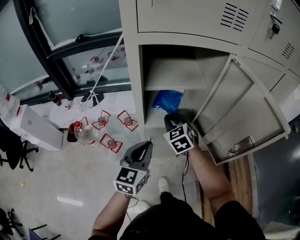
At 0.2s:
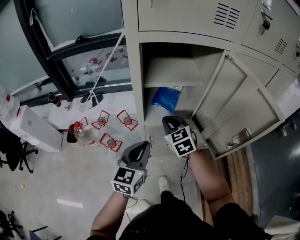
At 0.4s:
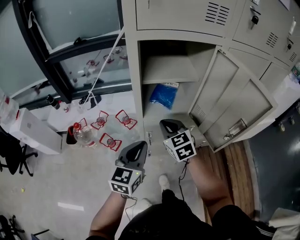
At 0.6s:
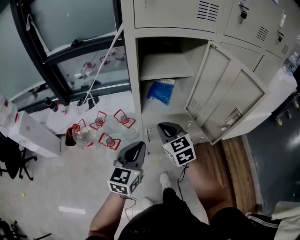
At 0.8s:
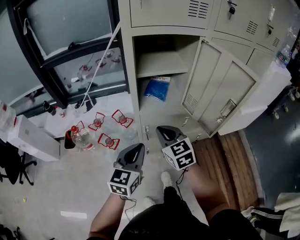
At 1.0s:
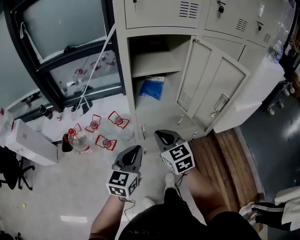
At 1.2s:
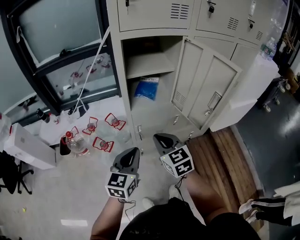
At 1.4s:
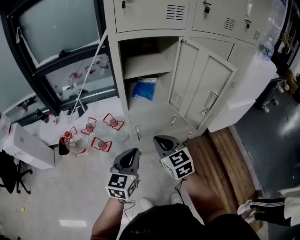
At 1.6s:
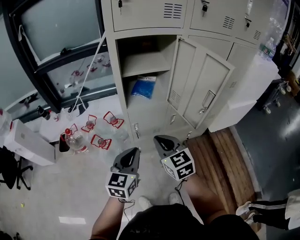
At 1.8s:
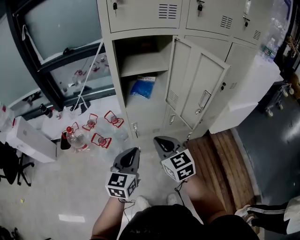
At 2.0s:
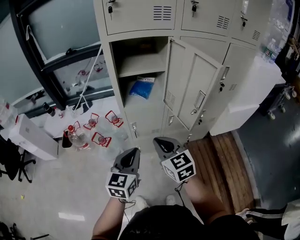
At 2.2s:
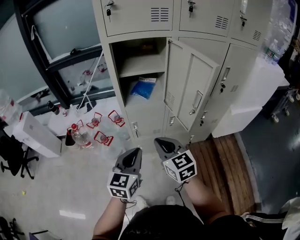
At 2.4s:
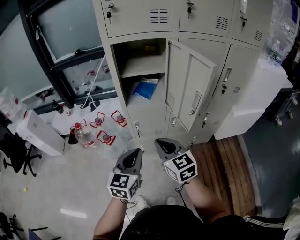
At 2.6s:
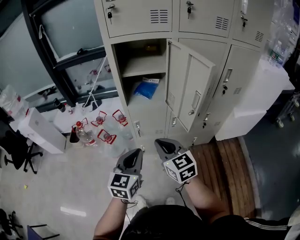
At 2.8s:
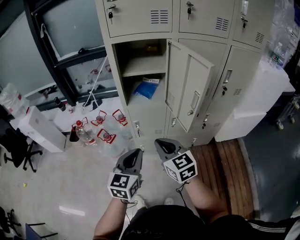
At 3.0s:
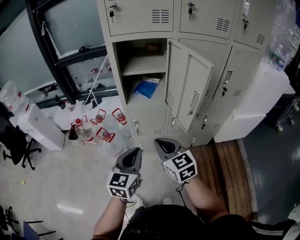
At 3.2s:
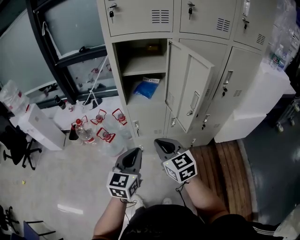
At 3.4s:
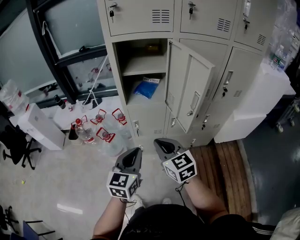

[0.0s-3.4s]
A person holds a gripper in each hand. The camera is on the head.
0.0s to 1.6s: The right gripper is displaced backward by roughly 25 cm, and swivels roughly 20 degrees; the left gripper goes approximately 15 cm backward.
1.6s to 3.4s: Both grippers move to the right and backward, about 10 cm.

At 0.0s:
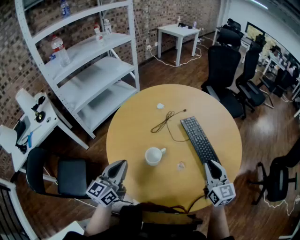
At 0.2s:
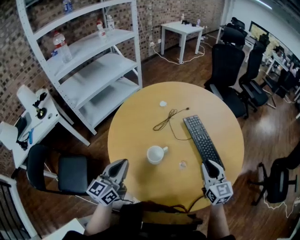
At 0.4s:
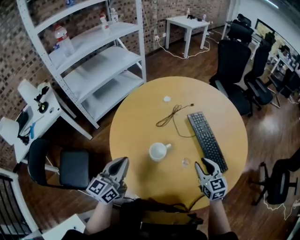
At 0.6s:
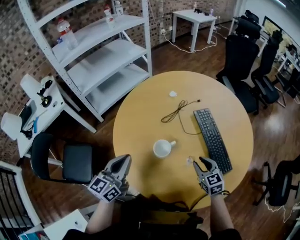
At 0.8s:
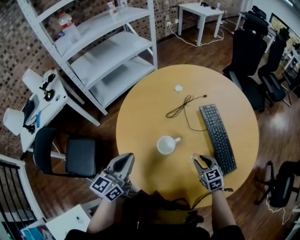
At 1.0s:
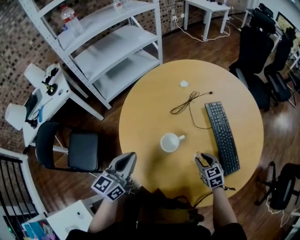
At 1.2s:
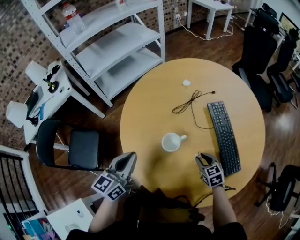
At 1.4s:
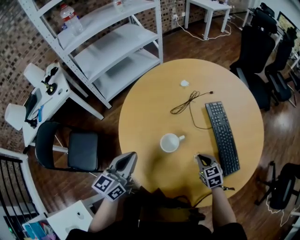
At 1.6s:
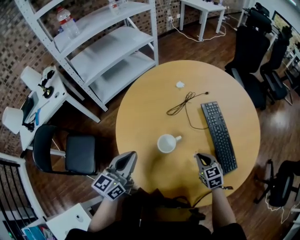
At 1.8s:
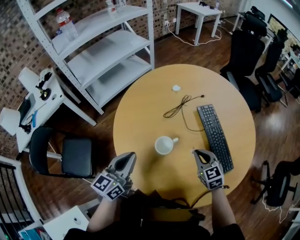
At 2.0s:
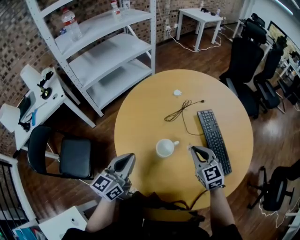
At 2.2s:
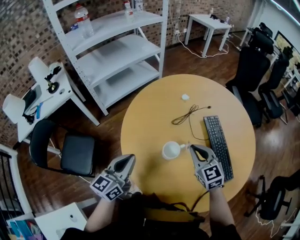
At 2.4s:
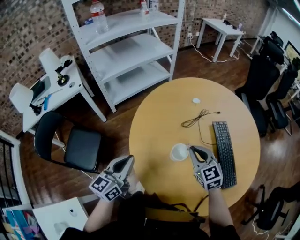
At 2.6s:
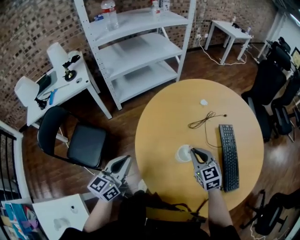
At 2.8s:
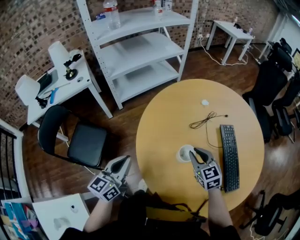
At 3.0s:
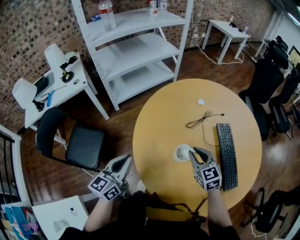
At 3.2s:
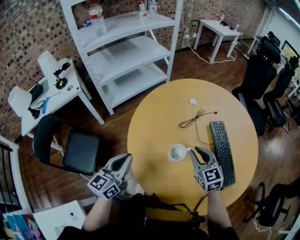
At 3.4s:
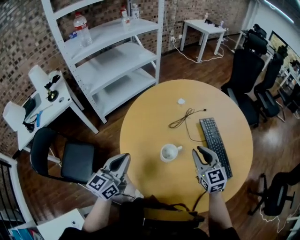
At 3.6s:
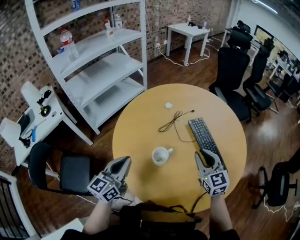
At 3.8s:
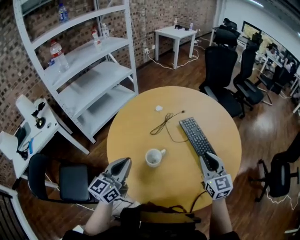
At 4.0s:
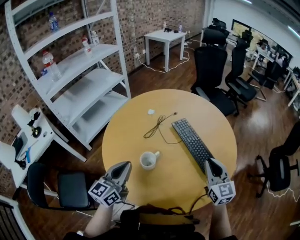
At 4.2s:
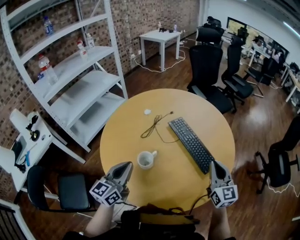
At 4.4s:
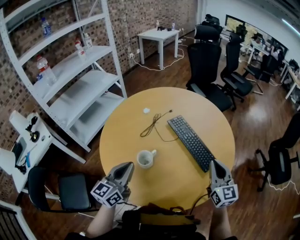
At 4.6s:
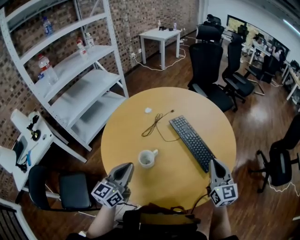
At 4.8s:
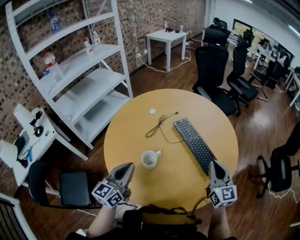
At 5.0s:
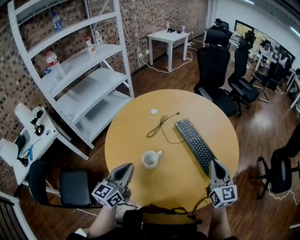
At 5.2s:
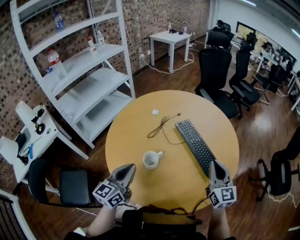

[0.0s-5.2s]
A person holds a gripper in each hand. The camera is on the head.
0.0s to 1.8s: The right gripper moves downward, to the left and forward, some 15 cm, and turns by roughly 30 degrees.
1.8s to 3.4s: The right gripper goes about 10 cm upward, and travels to the left and back again, some 15 cm each way. Meanwhile the left gripper heads to the left, covering approximately 5 cm.
3.4s to 5.2s: The left gripper is displaced to the right by roughly 10 cm. The right gripper shifts roughly 20 cm to the right, and swivels approximately 30 degrees.

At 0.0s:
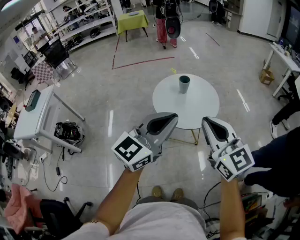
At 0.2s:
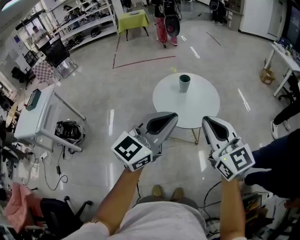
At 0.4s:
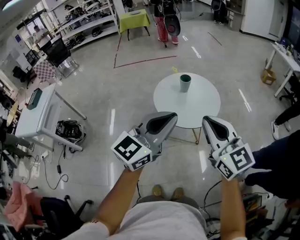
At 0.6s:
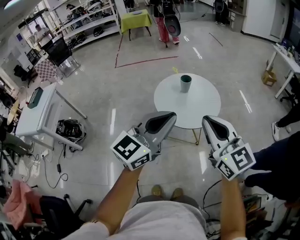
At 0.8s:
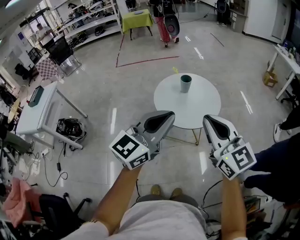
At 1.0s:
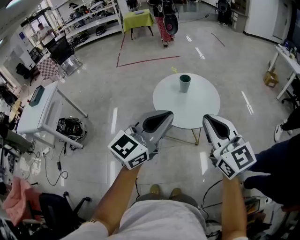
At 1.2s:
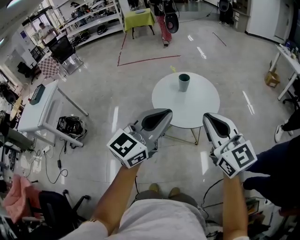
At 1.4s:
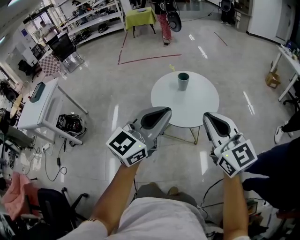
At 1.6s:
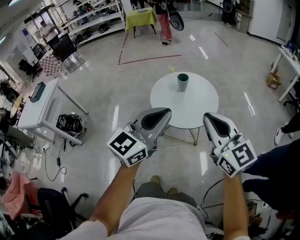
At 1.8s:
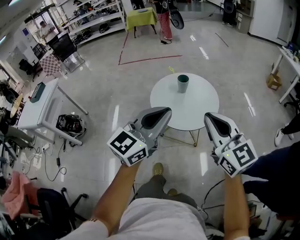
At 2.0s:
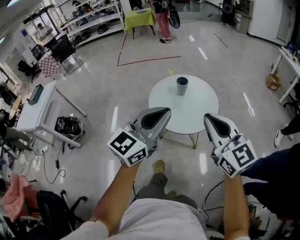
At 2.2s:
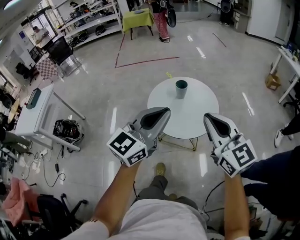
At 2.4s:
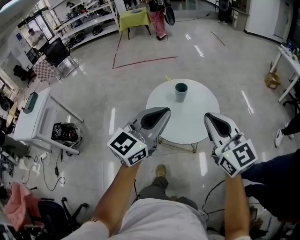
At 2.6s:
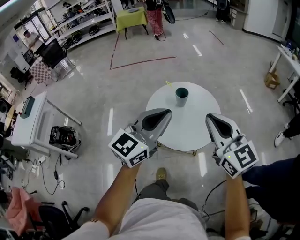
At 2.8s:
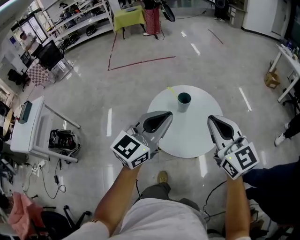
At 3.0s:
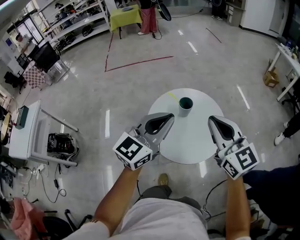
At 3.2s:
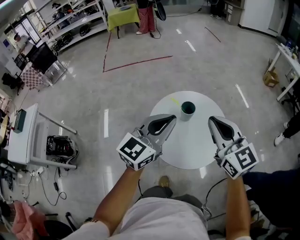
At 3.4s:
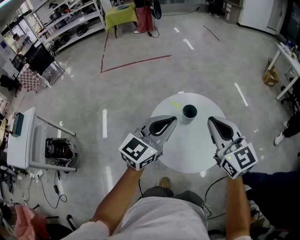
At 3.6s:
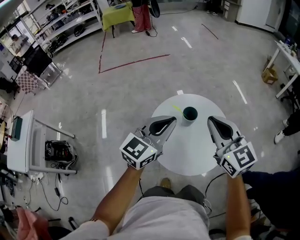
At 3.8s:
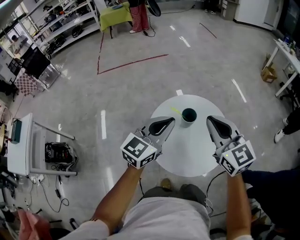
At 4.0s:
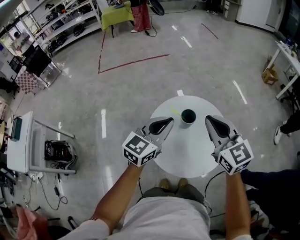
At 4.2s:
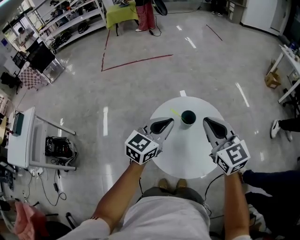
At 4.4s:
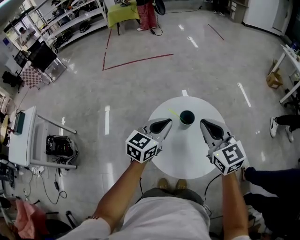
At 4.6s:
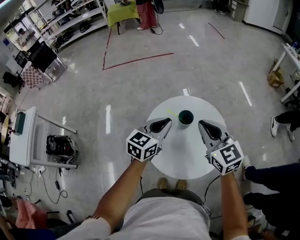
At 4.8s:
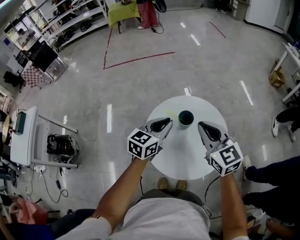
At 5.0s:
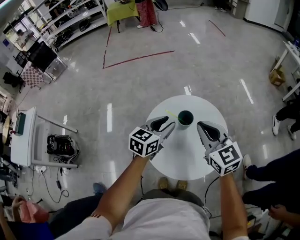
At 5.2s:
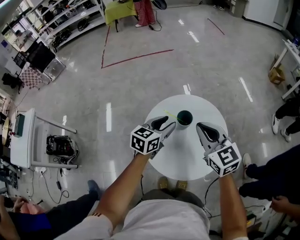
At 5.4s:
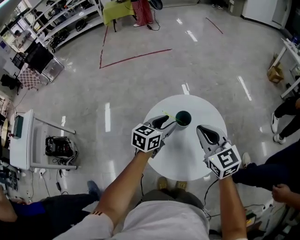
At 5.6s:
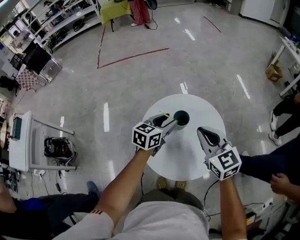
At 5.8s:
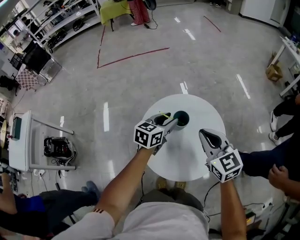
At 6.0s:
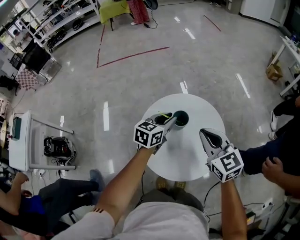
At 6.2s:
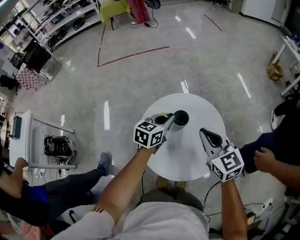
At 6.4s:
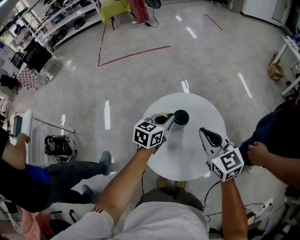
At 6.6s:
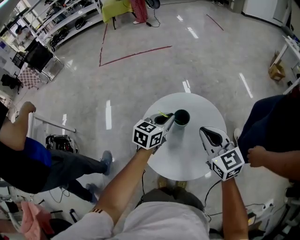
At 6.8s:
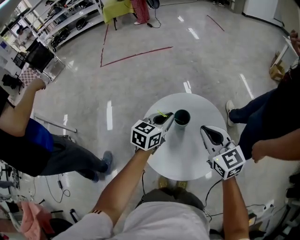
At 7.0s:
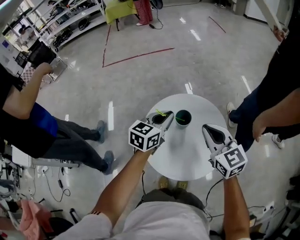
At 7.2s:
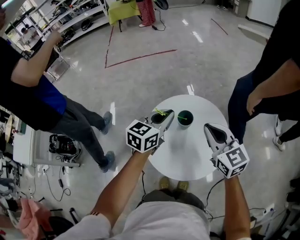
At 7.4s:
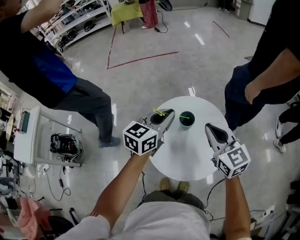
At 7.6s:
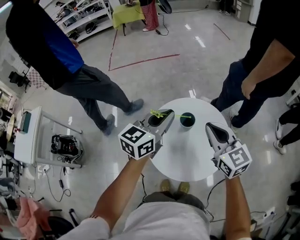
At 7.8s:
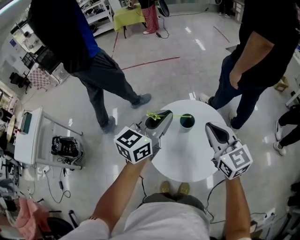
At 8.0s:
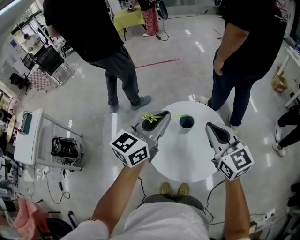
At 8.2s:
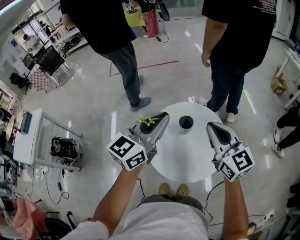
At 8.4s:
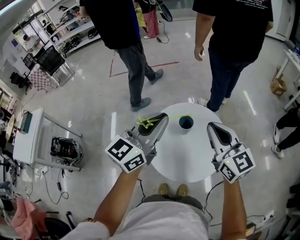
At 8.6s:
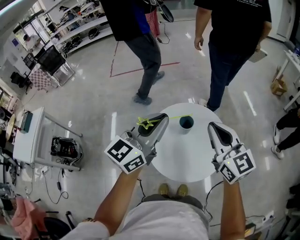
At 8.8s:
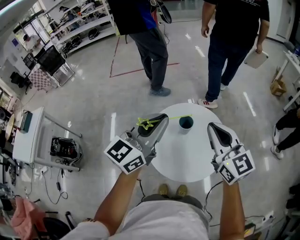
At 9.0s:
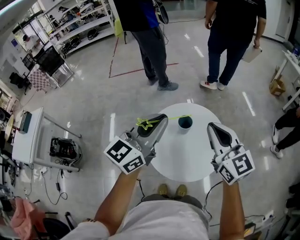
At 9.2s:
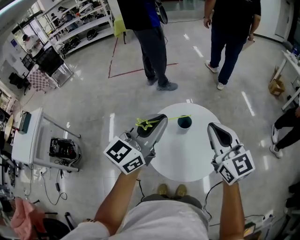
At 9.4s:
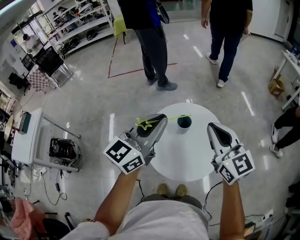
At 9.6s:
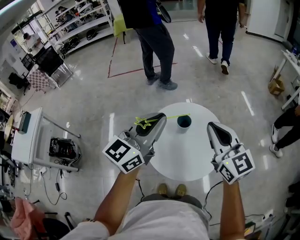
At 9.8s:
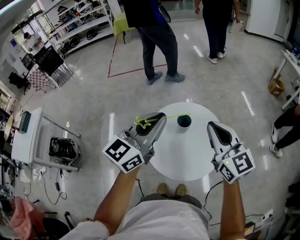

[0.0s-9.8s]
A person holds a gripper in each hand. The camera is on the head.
0.0s to 1.4s: There are only small adjustments of the grippers.
1.4s to 2.8s: The two grippers go some 15 cm forward.
2.8s to 4.2s: Both grippers move forward and downward, some 15 cm.
4.2s to 5.6s: The left gripper is displaced downward and forward by some 10 cm, and opens, while the right gripper is displaced downward by approximately 5 cm.
5.6s to 7.0s: The left gripper shifts approximately 5 cm upward, and closes its fingers.
7.0s to 8.4s: The left gripper moves upward and backward, approximately 20 cm, and rotates approximately 30 degrees. The right gripper shifts about 10 cm upward.
8.4s to 9.8s: There are only small adjustments of the grippers.

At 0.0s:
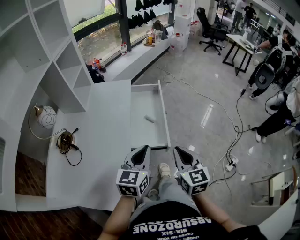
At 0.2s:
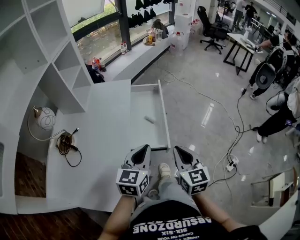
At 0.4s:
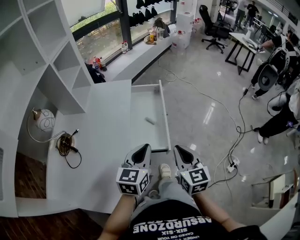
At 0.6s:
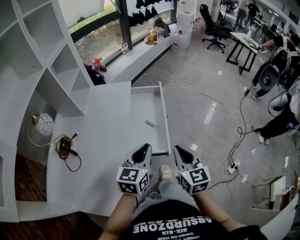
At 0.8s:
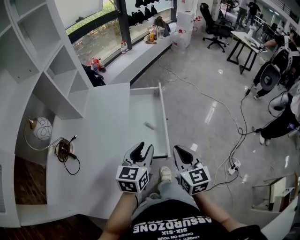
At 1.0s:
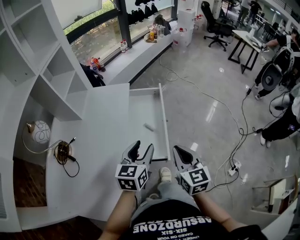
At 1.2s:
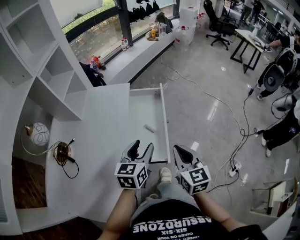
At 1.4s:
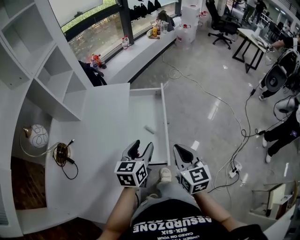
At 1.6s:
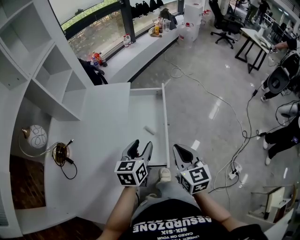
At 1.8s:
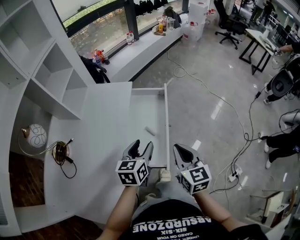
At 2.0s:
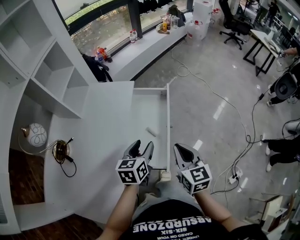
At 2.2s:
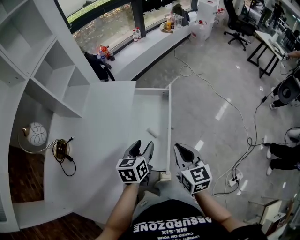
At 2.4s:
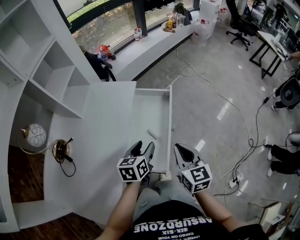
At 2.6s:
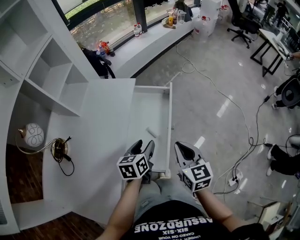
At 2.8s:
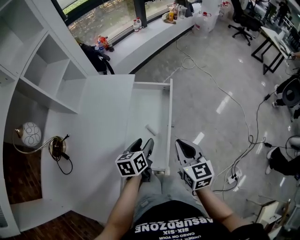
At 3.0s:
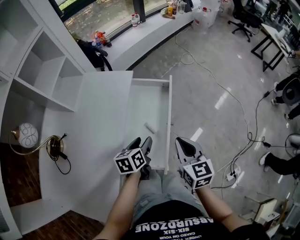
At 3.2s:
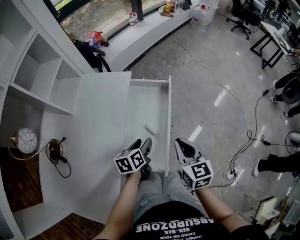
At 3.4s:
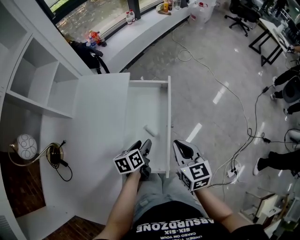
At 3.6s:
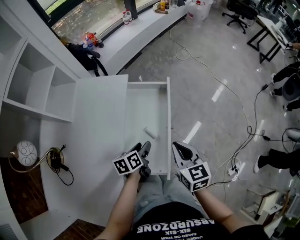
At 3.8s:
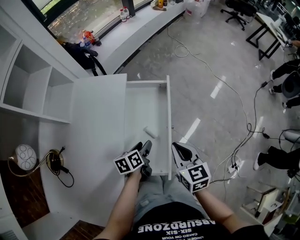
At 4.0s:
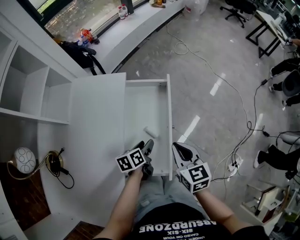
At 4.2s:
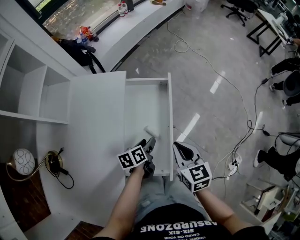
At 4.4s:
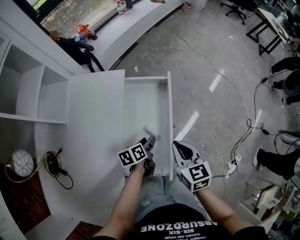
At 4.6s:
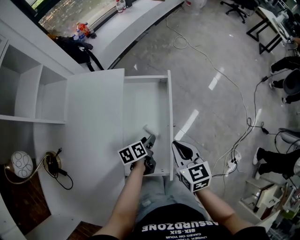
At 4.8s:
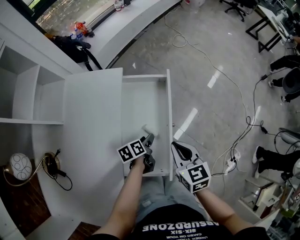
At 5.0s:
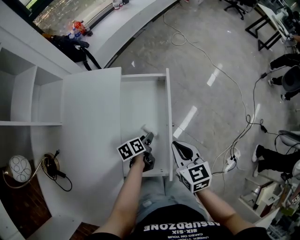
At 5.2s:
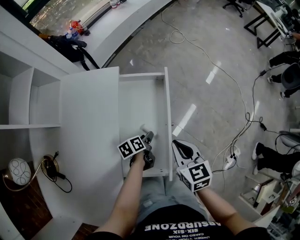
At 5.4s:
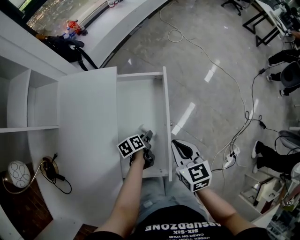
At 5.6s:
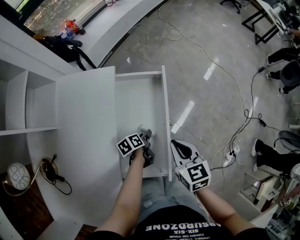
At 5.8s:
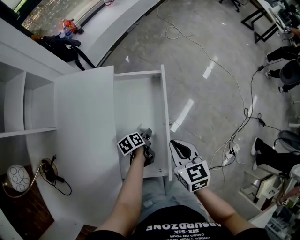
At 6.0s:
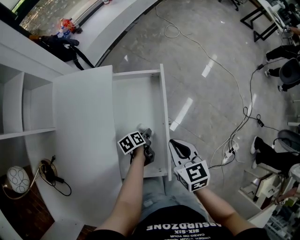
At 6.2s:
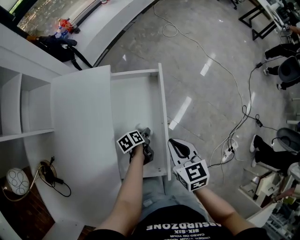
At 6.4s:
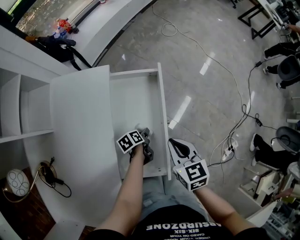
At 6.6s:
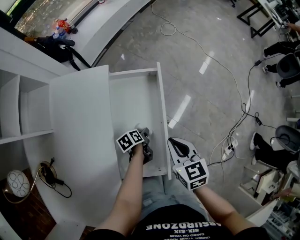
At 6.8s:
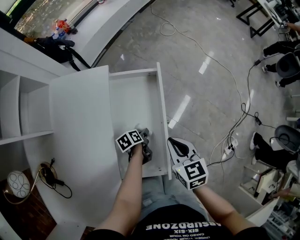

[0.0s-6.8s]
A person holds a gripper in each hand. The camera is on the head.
0.0s to 1.4s: The two grippers go roughly 20 cm forward. The left gripper opens up.
1.4s to 2.8s: The right gripper moves forward and downward, some 15 cm. Meanwhile the left gripper moves downward and forward, some 15 cm, and turns by roughly 20 degrees.
2.8s to 4.0s: The left gripper is displaced downward and forward by roughly 10 cm, and turns by about 20 degrees, while the right gripper goes approximately 5 cm forward.
4.0s to 5.4s: The left gripper is displaced downward by some 10 cm.
5.4s to 6.8s: The grippers move only a little.
